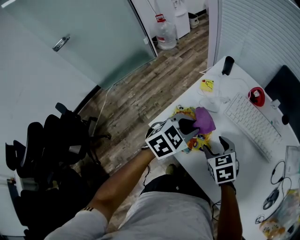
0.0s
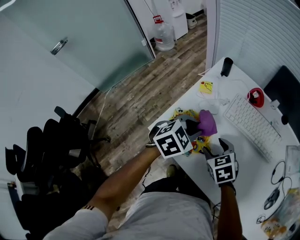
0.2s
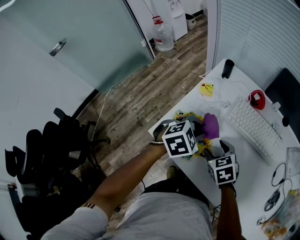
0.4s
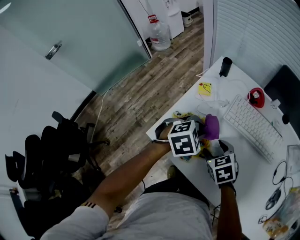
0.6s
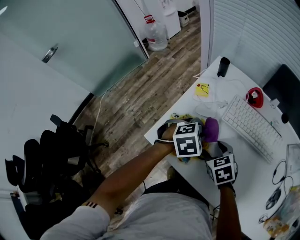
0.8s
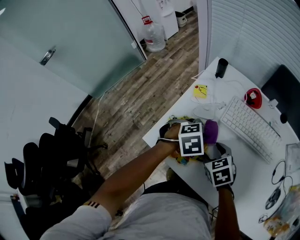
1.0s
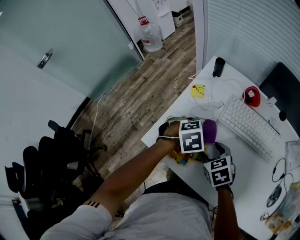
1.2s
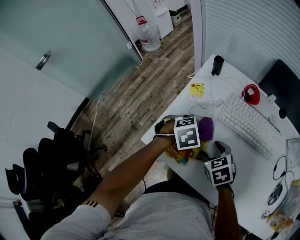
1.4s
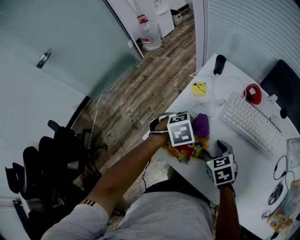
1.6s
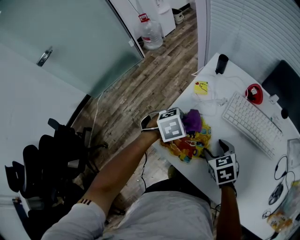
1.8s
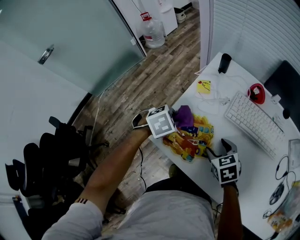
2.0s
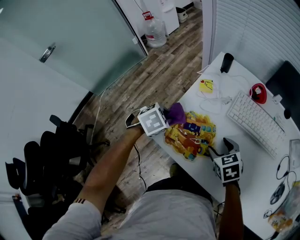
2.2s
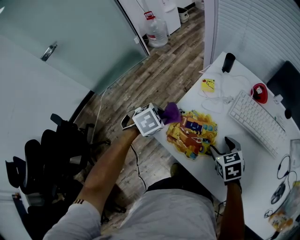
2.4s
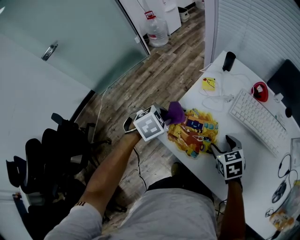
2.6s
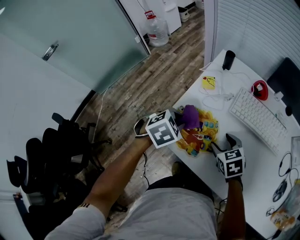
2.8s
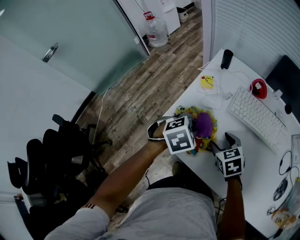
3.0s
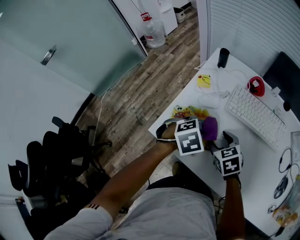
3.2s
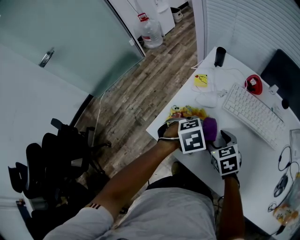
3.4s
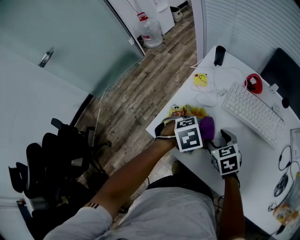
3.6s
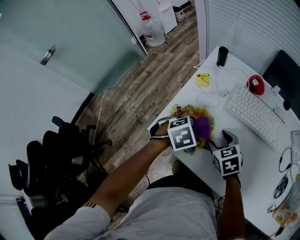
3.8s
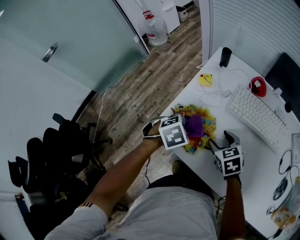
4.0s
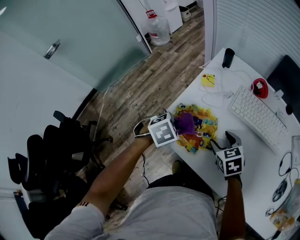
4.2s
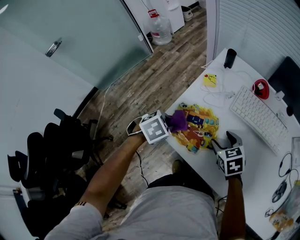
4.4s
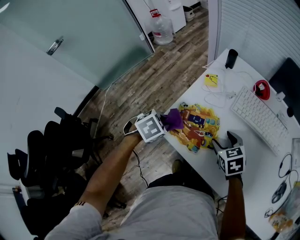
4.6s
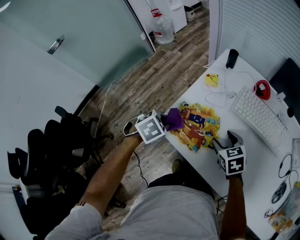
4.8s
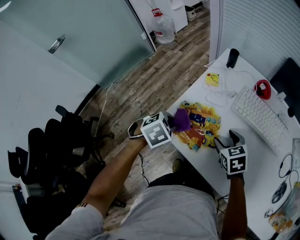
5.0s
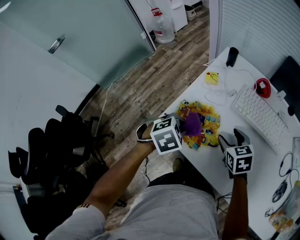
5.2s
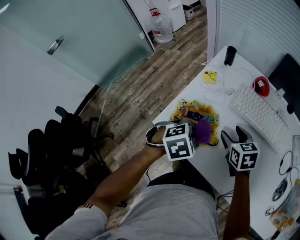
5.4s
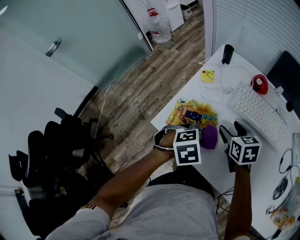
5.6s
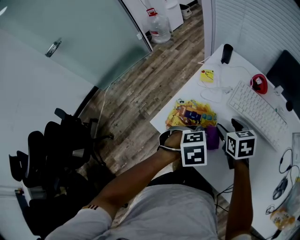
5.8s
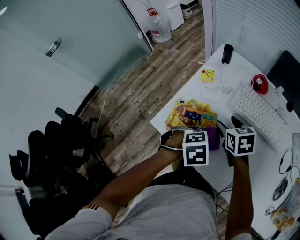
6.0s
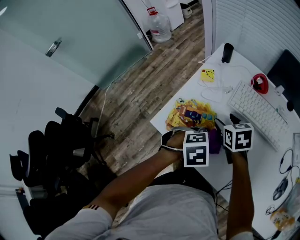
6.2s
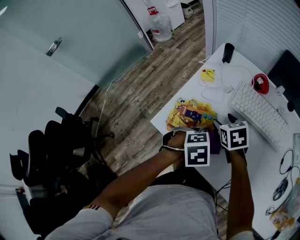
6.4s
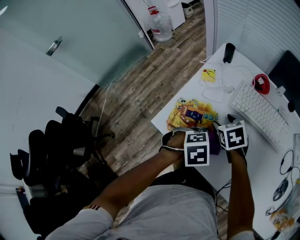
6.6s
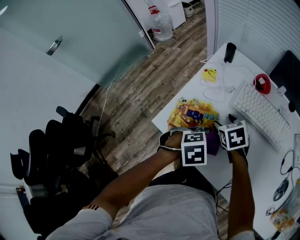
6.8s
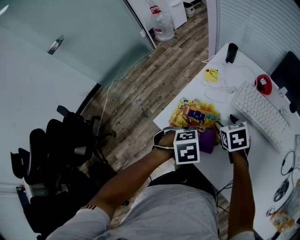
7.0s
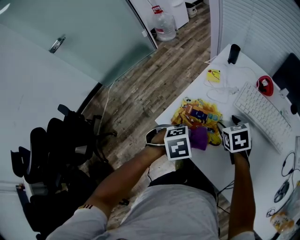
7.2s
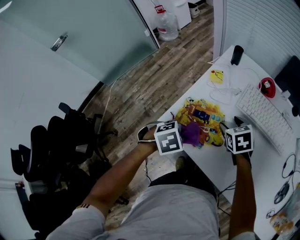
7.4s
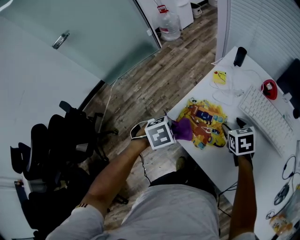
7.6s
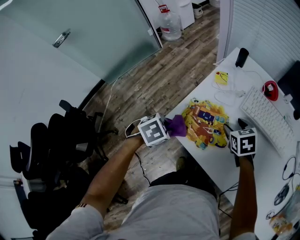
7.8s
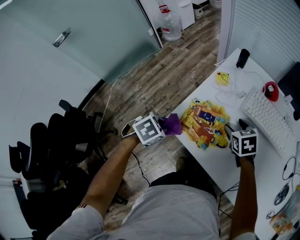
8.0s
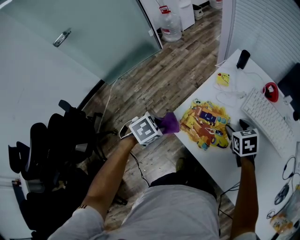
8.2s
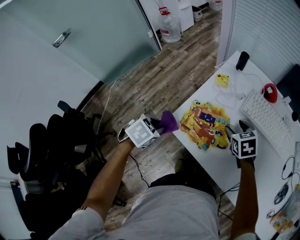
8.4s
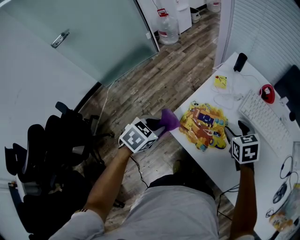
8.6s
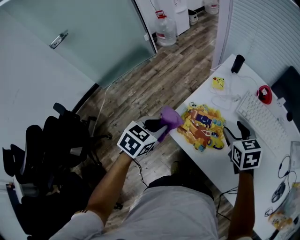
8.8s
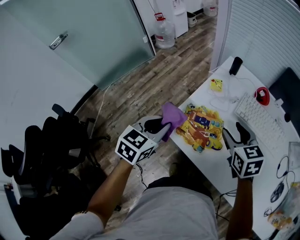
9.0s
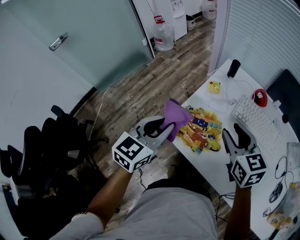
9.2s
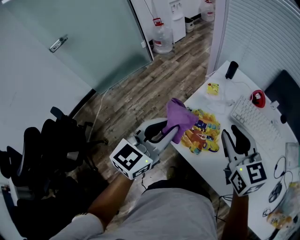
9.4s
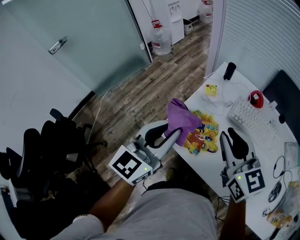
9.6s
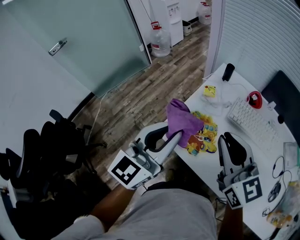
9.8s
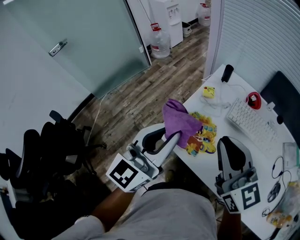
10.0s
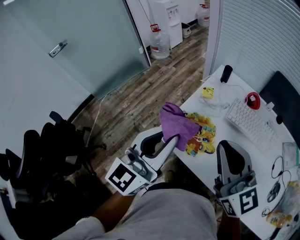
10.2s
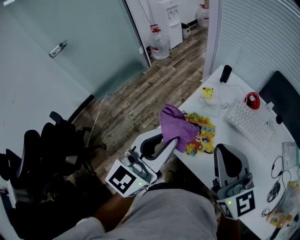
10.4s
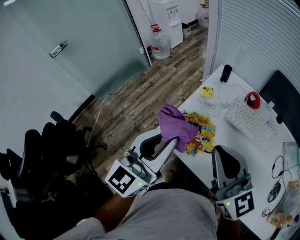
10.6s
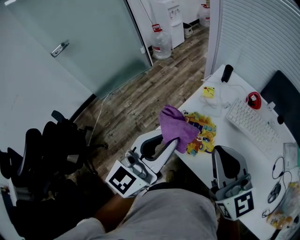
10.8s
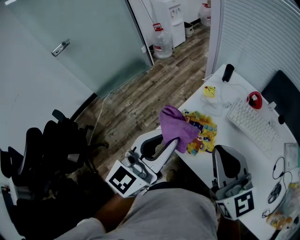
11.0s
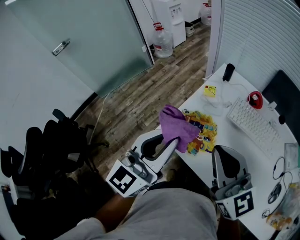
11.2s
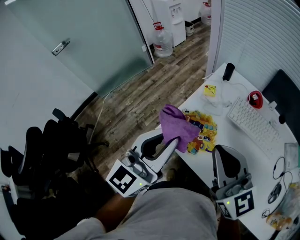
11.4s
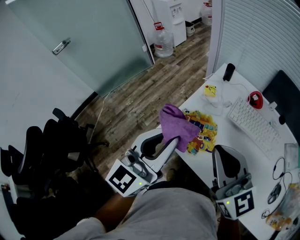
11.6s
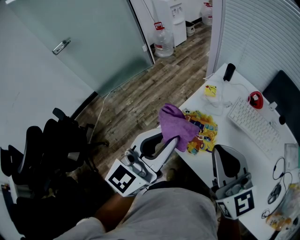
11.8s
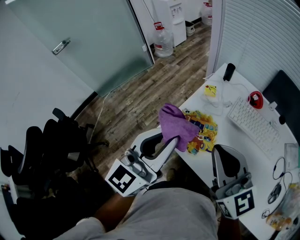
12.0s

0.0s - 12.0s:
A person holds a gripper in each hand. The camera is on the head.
0.0s - 1.6s: The left gripper heads downward, covering roughly 10 cm, and turns by approximately 30 degrees.
1.6s - 3.0s: The left gripper goes to the left and returns, approximately 15 cm each way.
3.0s - 4.4s: The left gripper travels to the left by some 10 cm.
4.4s - 6.0s: The right gripper shifts approximately 5 cm forward, while the left gripper travels to the right by roughly 20 cm, and swivels some 20 degrees.
6.0s - 7.6s: The left gripper heads to the left, covering about 15 cm, and turns by some 20 degrees.
7.6s - 9.0s: The two grippers go some 10 cm upward. The left gripper tilts its fingers about 40 degrees upward.
9.0s - 10.4s: The right gripper shifts approximately 20 cm upward and backward, tilts its fingers approximately 40 degrees upward, and closes its fingers. The left gripper is displaced upward by about 15 cm, and angles its fingers upward, by about 40 degrees.
10.4s - 12.0s: Neither gripper changes place.

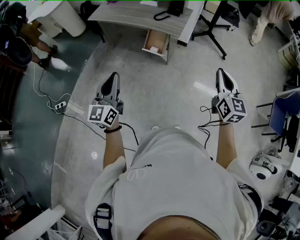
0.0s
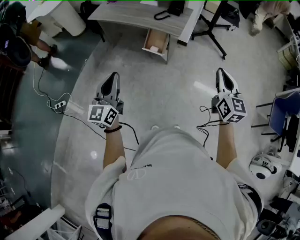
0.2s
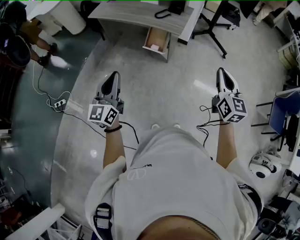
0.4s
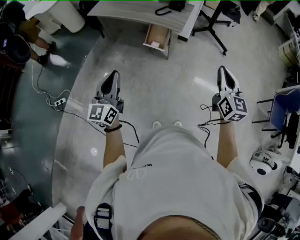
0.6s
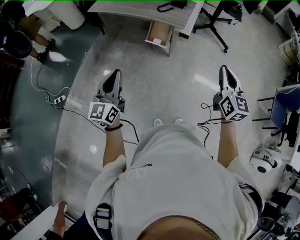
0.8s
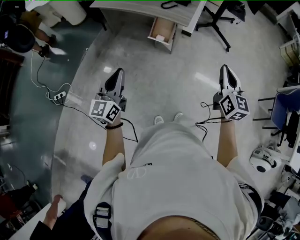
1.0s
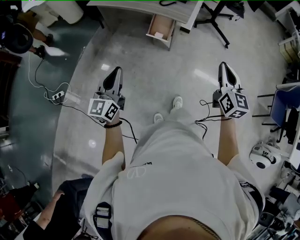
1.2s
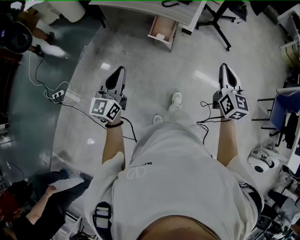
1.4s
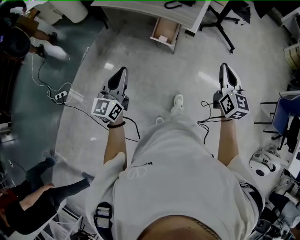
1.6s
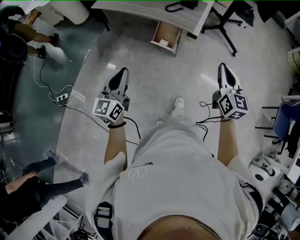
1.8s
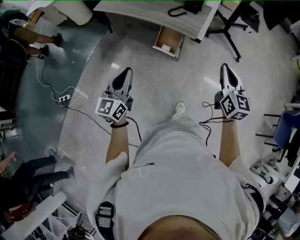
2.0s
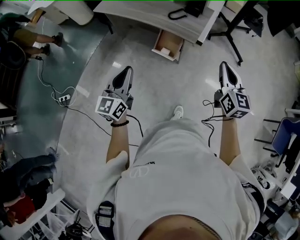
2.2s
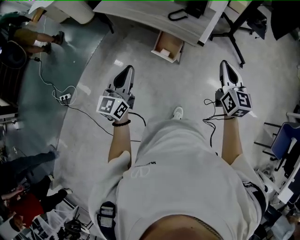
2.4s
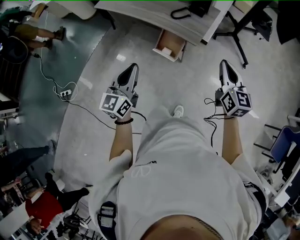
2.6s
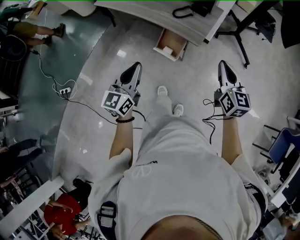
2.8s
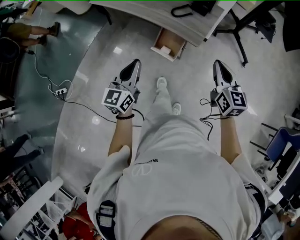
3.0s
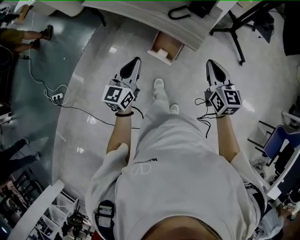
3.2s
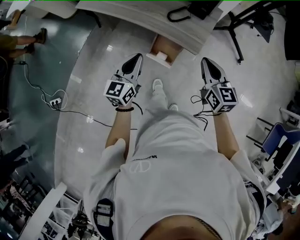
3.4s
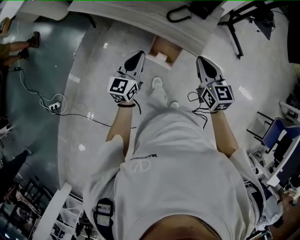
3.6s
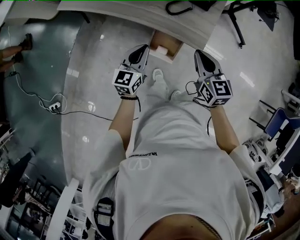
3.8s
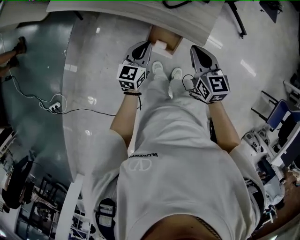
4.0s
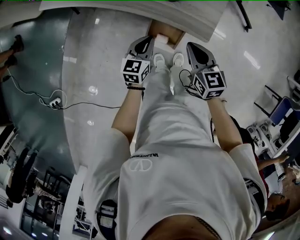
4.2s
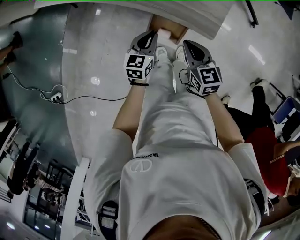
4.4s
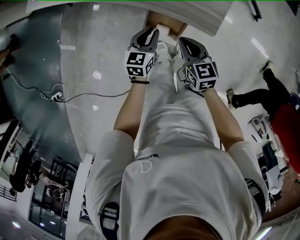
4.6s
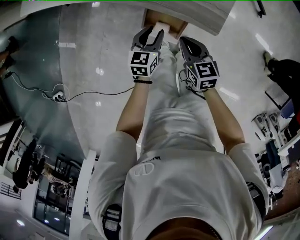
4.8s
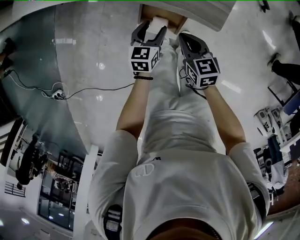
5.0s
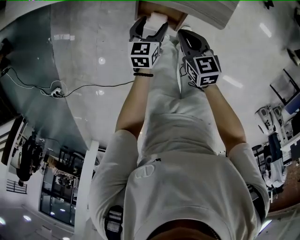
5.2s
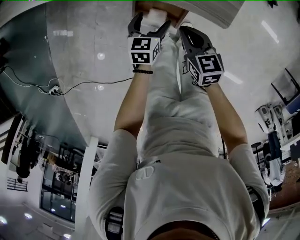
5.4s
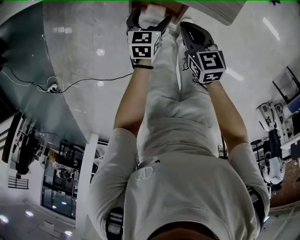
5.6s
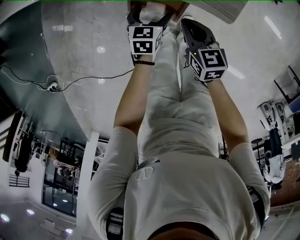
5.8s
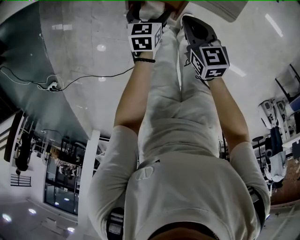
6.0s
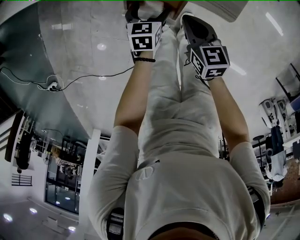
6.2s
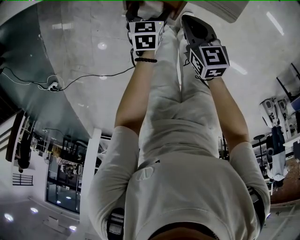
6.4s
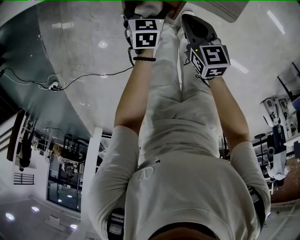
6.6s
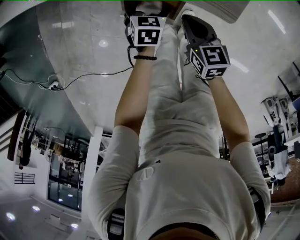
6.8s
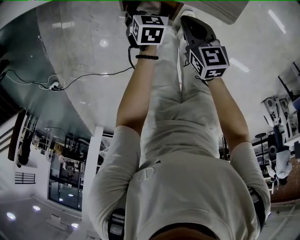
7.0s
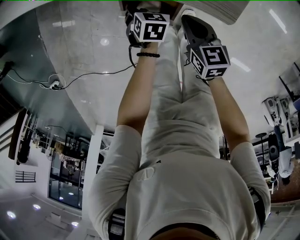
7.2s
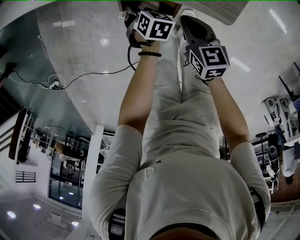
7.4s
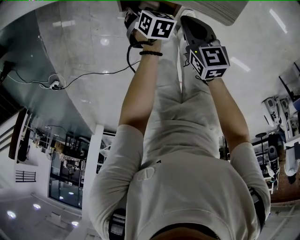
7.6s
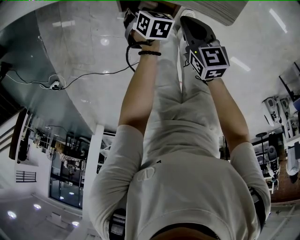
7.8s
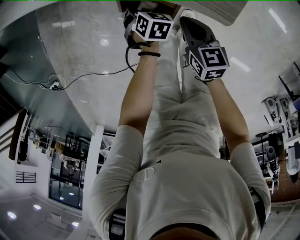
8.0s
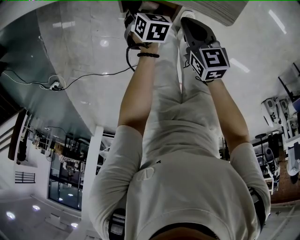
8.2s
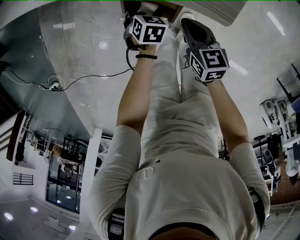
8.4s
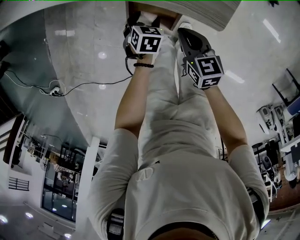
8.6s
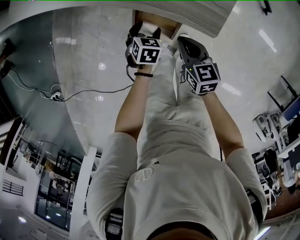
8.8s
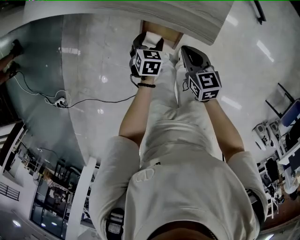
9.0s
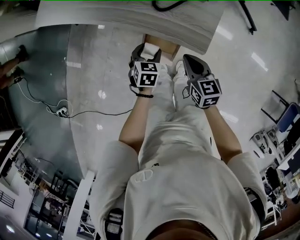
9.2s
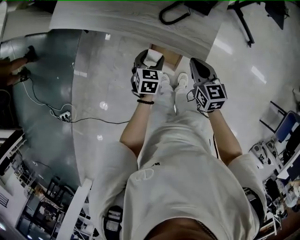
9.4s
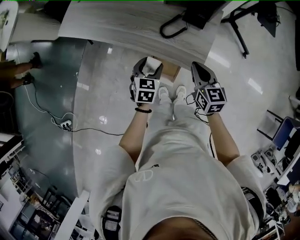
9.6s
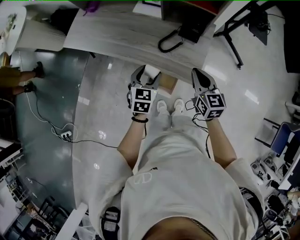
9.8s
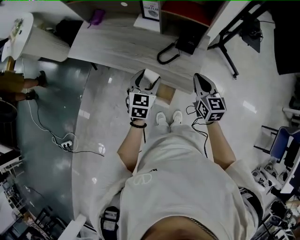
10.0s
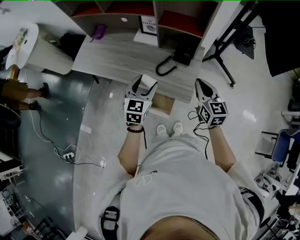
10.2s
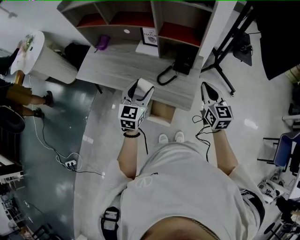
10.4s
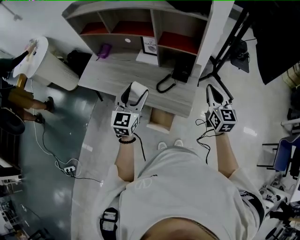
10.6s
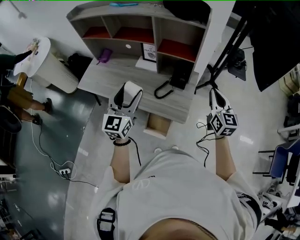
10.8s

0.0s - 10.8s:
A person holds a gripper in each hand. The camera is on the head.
0.0s - 1.6s: The right gripper travels to the left by approximately 5 cm. The left gripper shifts roughly 5 cm downward.
1.6s - 3.0s: Both grippers travel together forward, roughly 30 cm.
3.0s - 4.6s: The left gripper travels downward and forward by approximately 40 cm, and swivels roughly 30 degrees; the right gripper goes approximately 40 cm downward, forward and to the left, and turns by about 30 degrees.
4.6s - 6.2s: Both grippers move downward, approximately 20 cm. The left gripper opens its fingers.
6.2s - 7.8s: The left gripper swivels approximately 30 degrees, and closes its fingers.
7.8s - 9.2s: The grippers both shift upward by some 25 cm. The left gripper turns by roughly 30 degrees.
9.2s - 10.8s: The left gripper is displaced upward by approximately 50 cm, and angles its fingers upward, by some 60 degrees. The right gripper shifts about 40 cm upward and to the right, and turns by about 40 degrees.

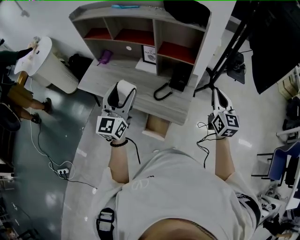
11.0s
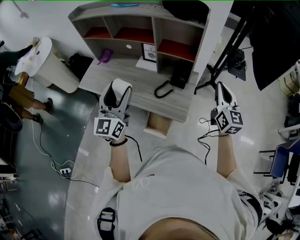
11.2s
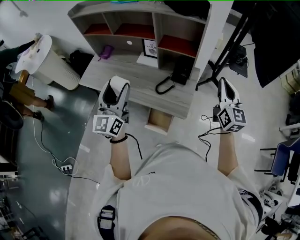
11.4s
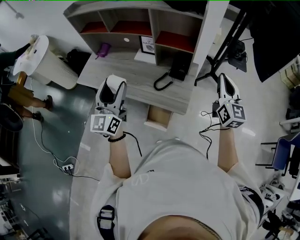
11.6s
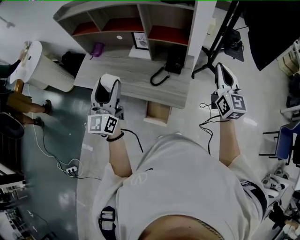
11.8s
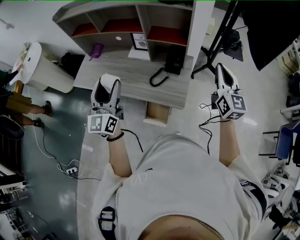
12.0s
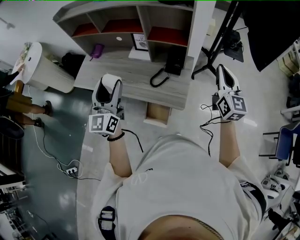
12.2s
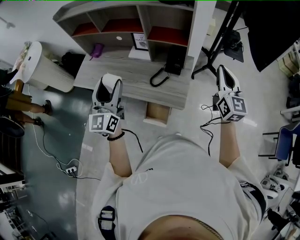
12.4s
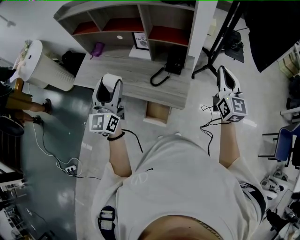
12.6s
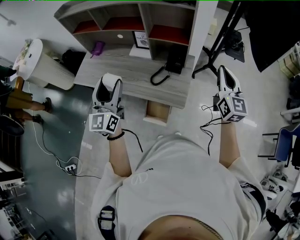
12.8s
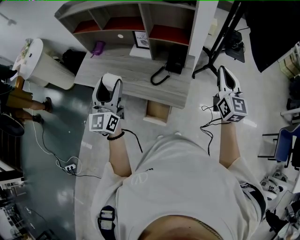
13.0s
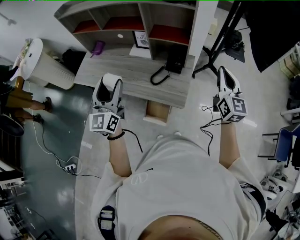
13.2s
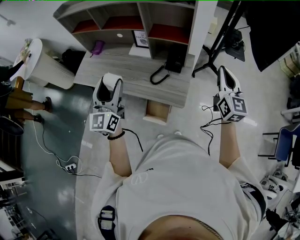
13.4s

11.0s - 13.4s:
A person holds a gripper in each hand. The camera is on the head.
11.0s - 13.4s: The grippers move only a little.
